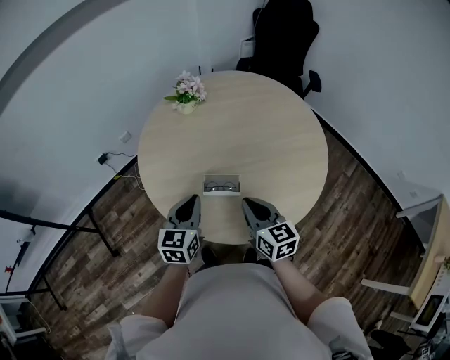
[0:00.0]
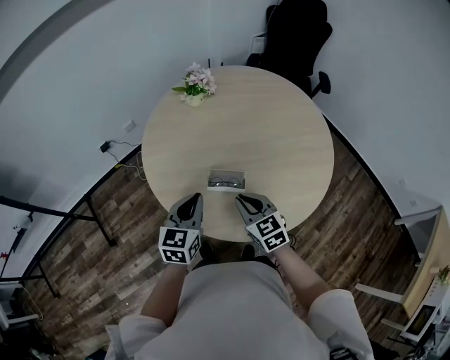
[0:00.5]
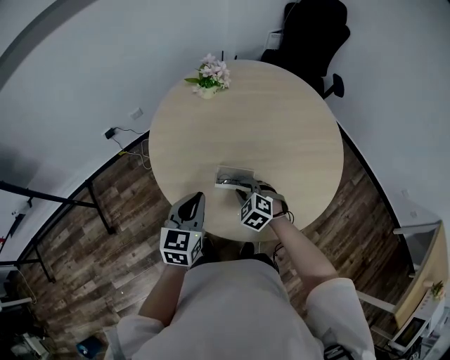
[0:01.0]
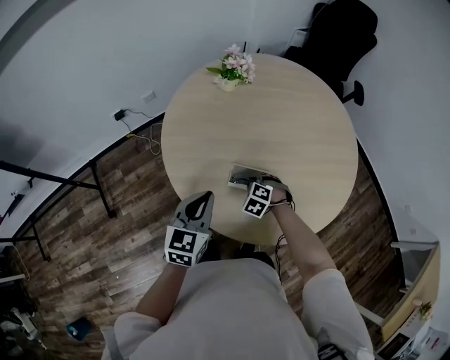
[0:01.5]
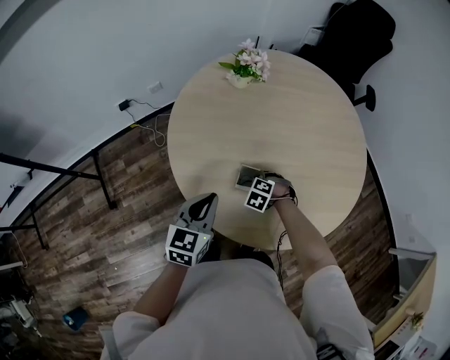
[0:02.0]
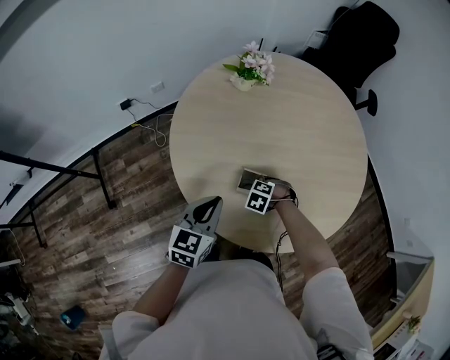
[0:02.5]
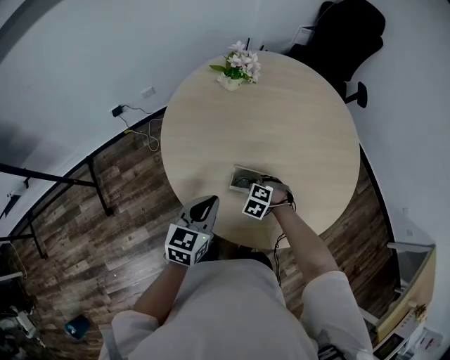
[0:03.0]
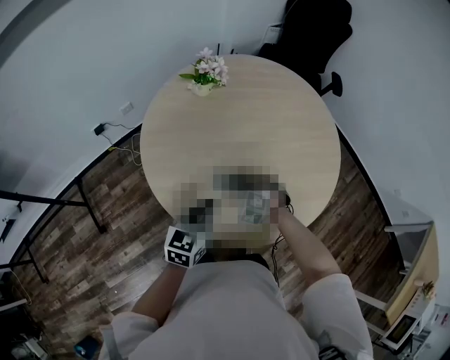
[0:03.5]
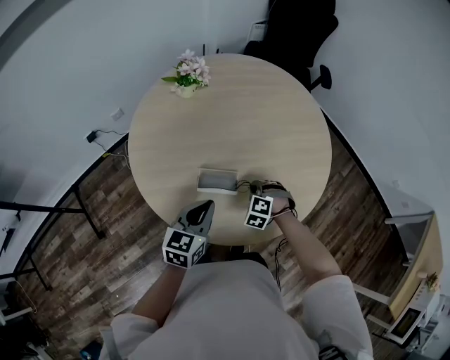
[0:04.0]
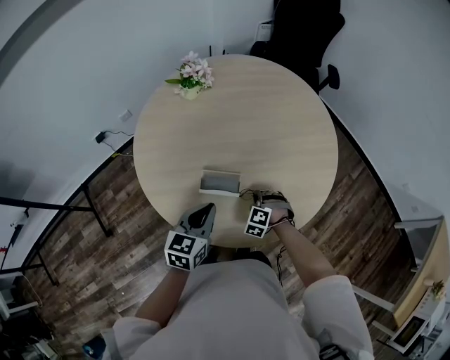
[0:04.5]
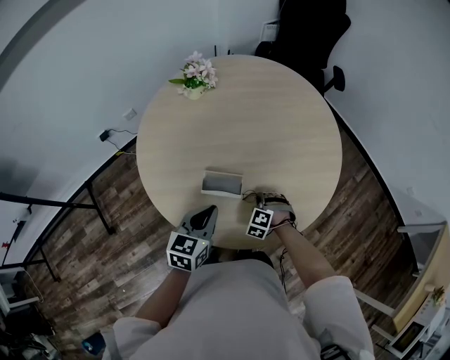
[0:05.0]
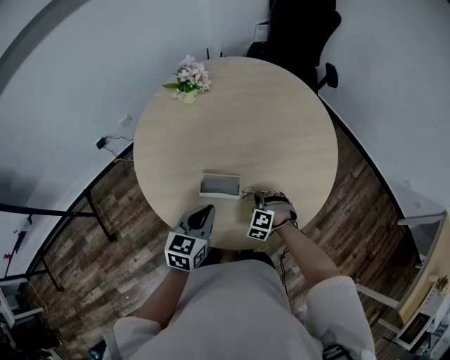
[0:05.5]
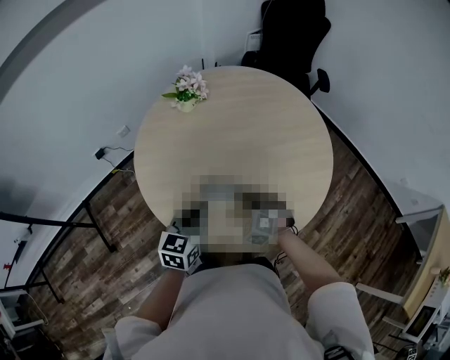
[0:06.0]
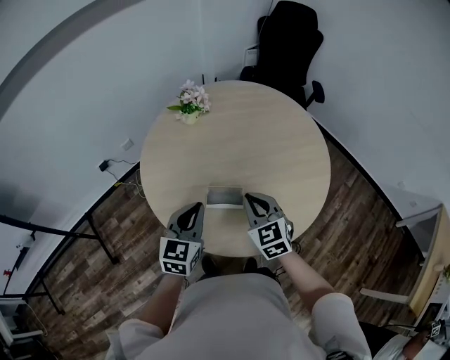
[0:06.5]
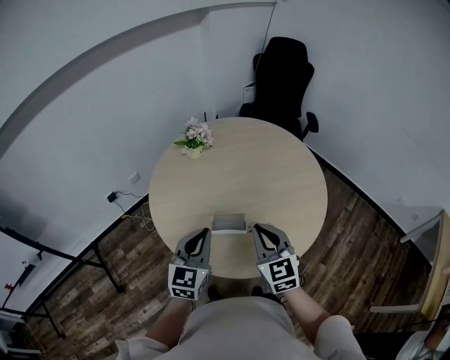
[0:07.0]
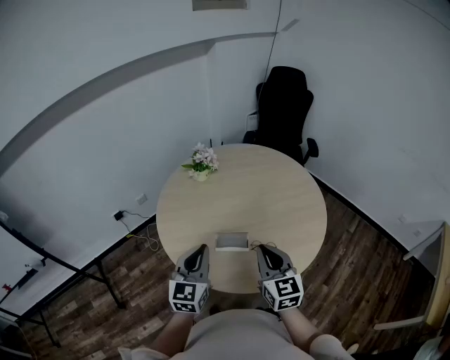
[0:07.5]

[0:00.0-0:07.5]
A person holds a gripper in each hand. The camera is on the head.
0:00.0 to 0:02.0: The right gripper heads downward, covering approximately 25 cm, and points its fingers some 60 degrees further downward; the left gripper ends up roughly 10 cm from where it was.
0:02.0 to 0:04.0: The left gripper shifts by some 10 cm; the right gripper changes place by approximately 15 cm.
0:04.0 to 0:05.5: The grippers make only small movements.
0:05.5 to 0:07.5: The right gripper heads upward, covering approximately 35 cm, and tilts its fingers some 50 degrees upward, while the left gripper is displaced upward, backward and to the left by some 20 cm, and turns by some 30 degrees.

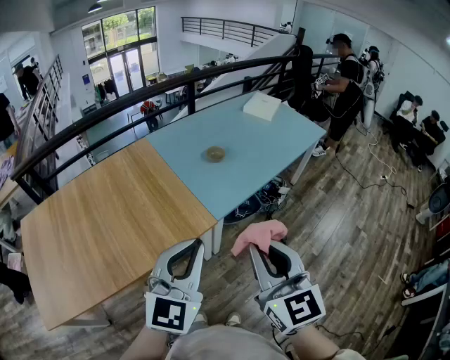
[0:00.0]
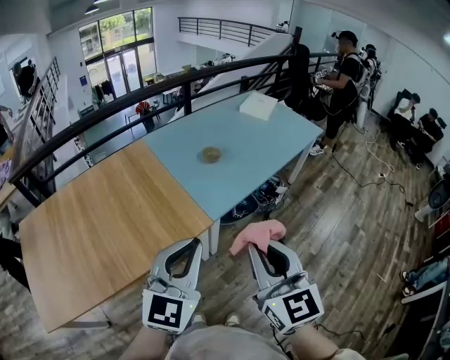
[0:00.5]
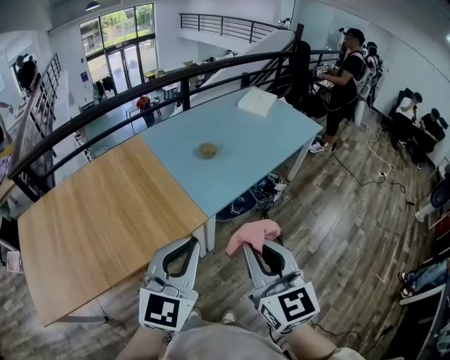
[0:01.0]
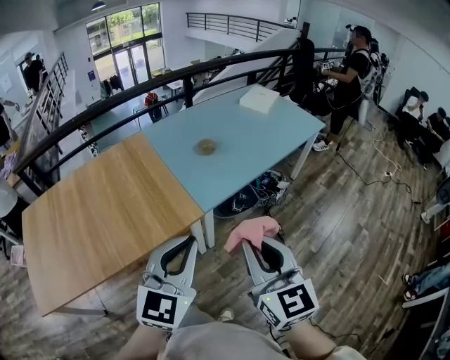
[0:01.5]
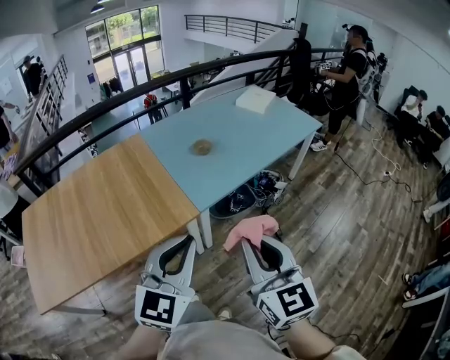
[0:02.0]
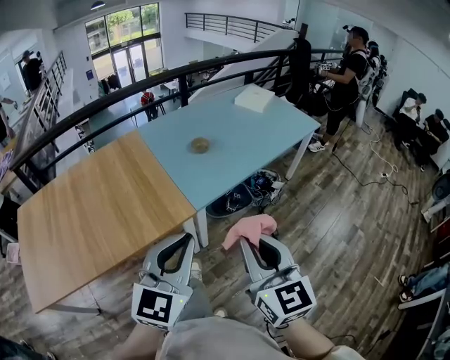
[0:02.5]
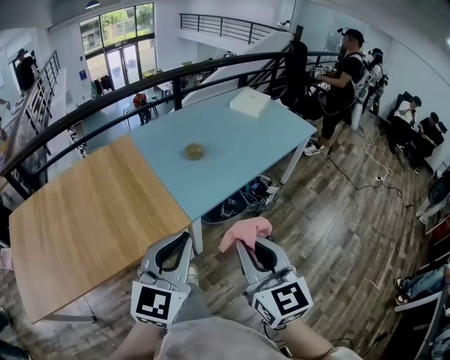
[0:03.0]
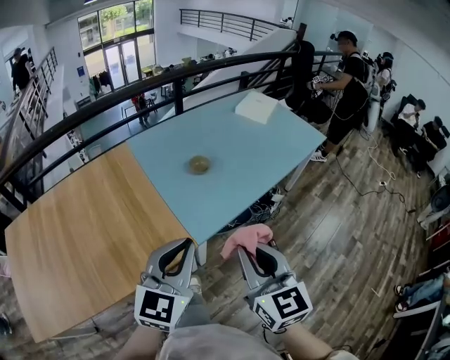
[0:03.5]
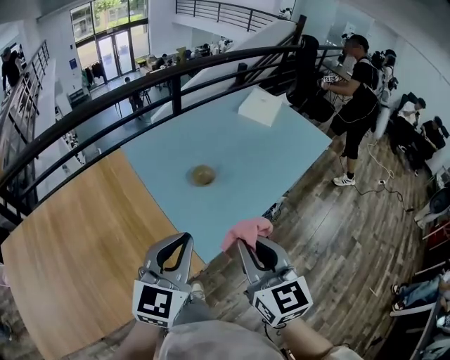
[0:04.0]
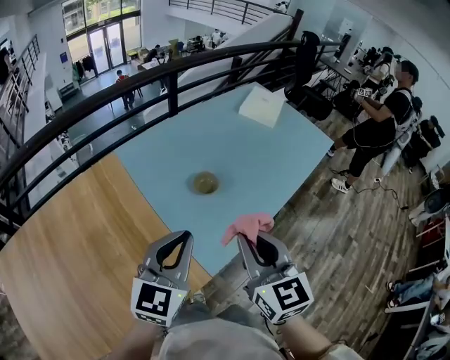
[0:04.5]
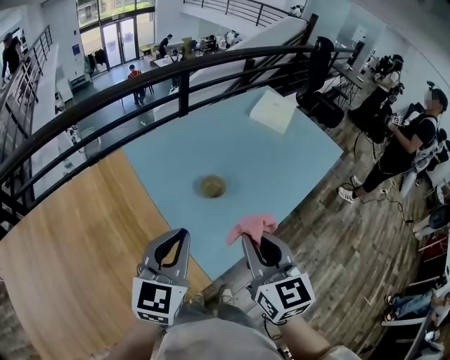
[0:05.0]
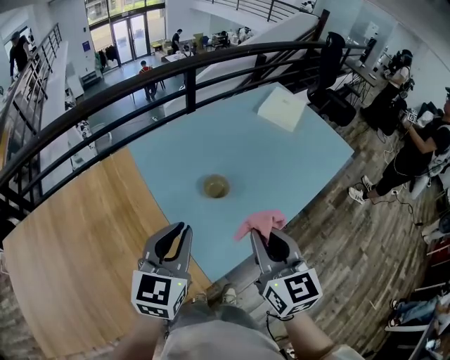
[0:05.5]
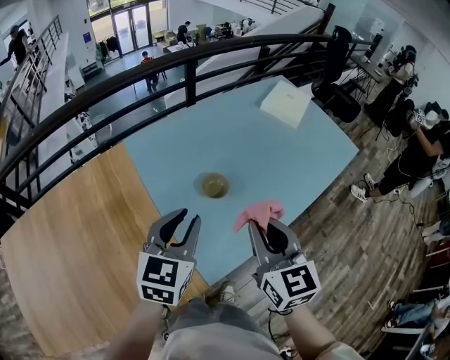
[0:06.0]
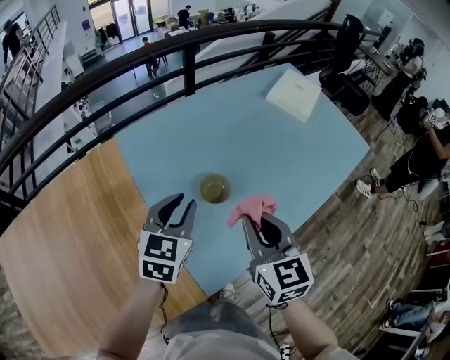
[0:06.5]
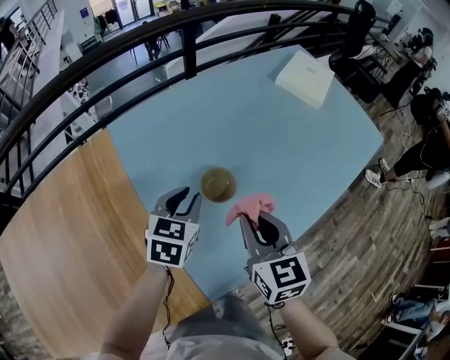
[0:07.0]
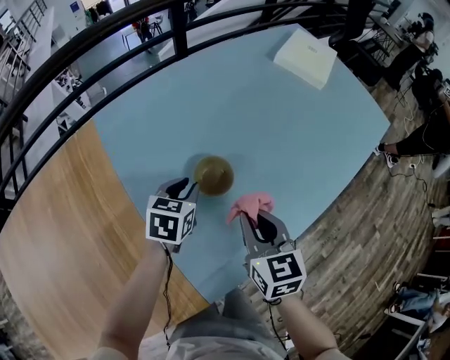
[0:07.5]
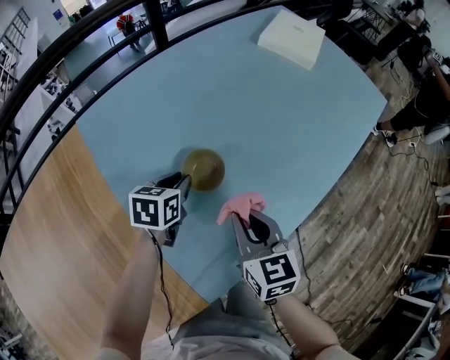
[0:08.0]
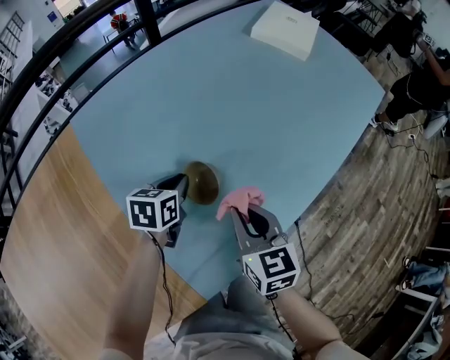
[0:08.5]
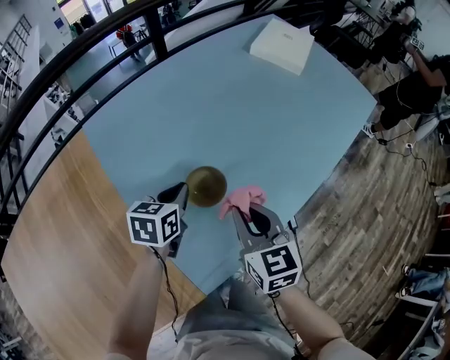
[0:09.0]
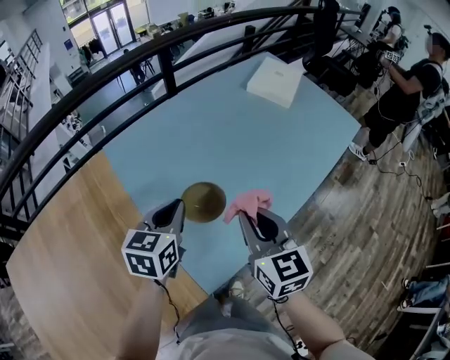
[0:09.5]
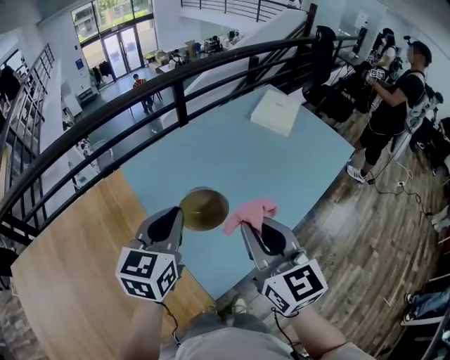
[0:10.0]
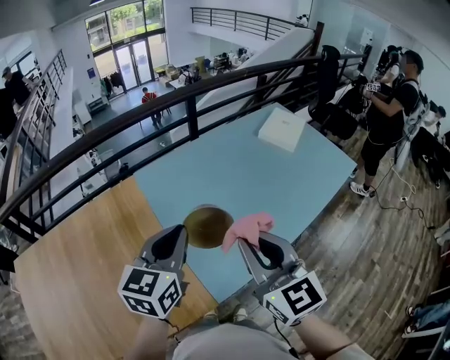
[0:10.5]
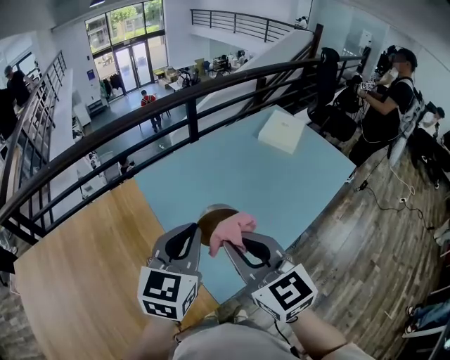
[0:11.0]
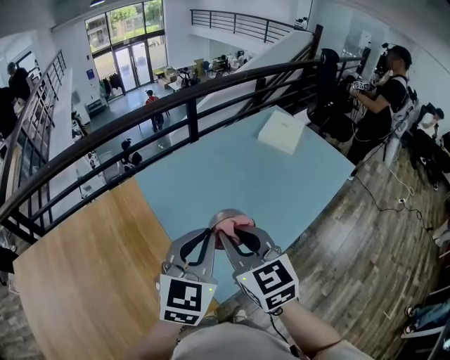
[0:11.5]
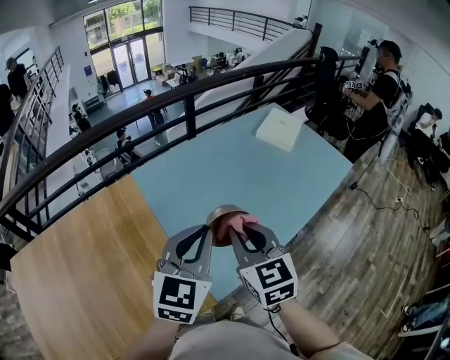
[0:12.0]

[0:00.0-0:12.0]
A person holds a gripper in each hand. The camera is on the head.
0:00.0 to 0:02.0: The two grippers go about 10 cm to the right.
0:02.0 to 0:04.0: The two grippers go roughly 35 cm forward.
0:04.0 to 0:06.0: Both grippers travel together forward, roughly 20 cm. The left gripper opens.
0:06.0 to 0:08.0: Both grippers travel together downward and forward, about 35 cm. The left gripper rotates roughly 30 degrees.
0:08.0 to 0:10.0: The left gripper moves upward and backward, roughly 40 cm, and rotates approximately 30 degrees; the right gripper moves upward, approximately 35 cm, and swivels approximately 20 degrees.
0:10.0 to 0:12.0: The left gripper is displaced backward and upward by approximately 10 cm, while the right gripper heads to the left, covering about 5 cm.

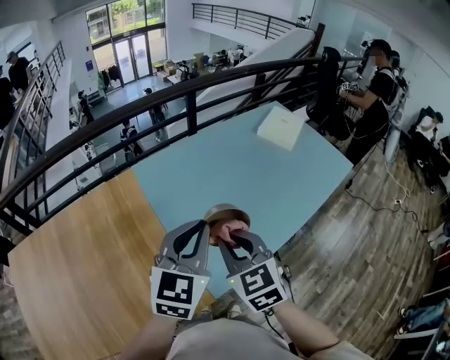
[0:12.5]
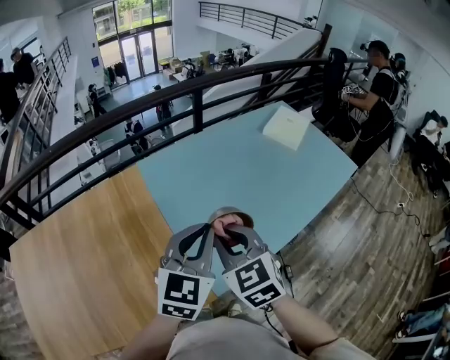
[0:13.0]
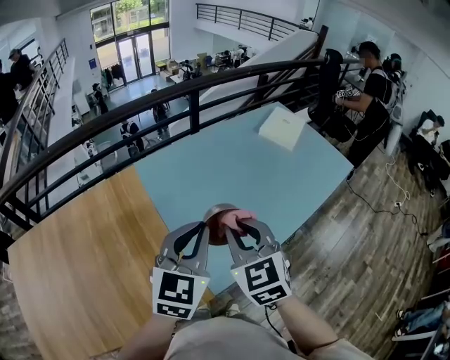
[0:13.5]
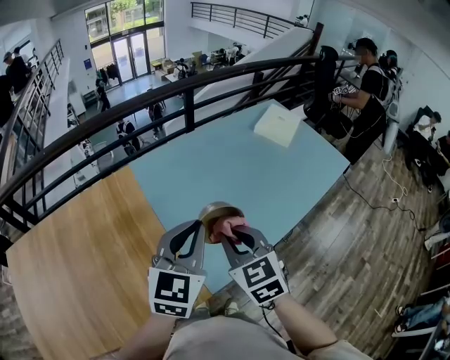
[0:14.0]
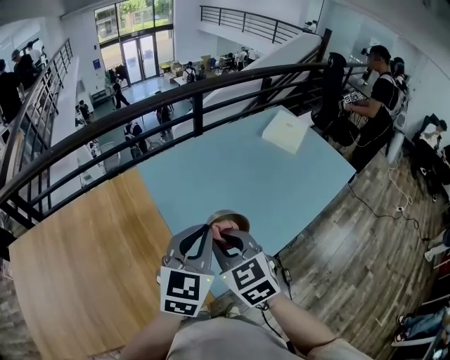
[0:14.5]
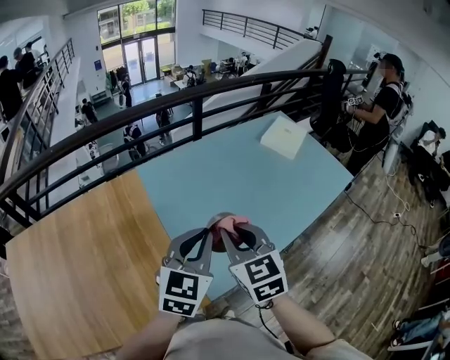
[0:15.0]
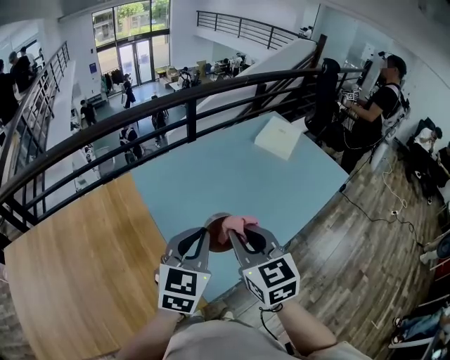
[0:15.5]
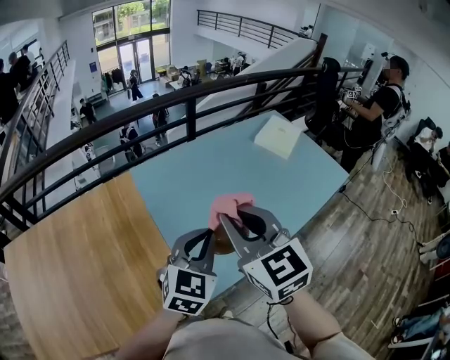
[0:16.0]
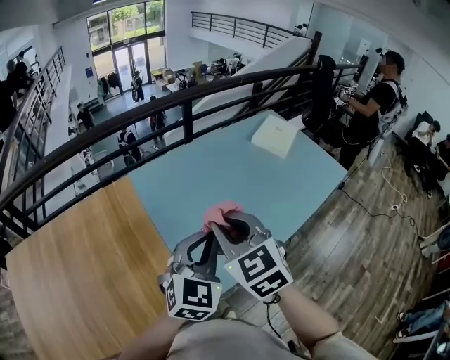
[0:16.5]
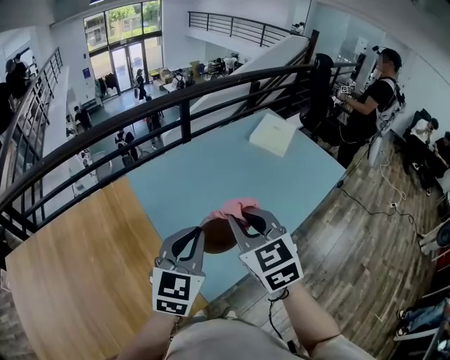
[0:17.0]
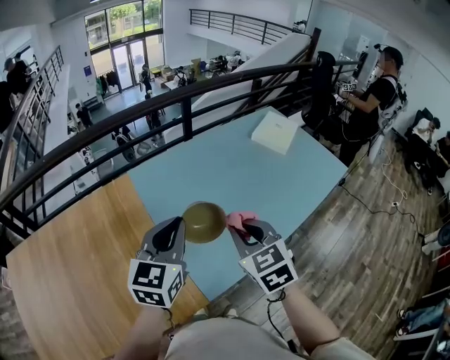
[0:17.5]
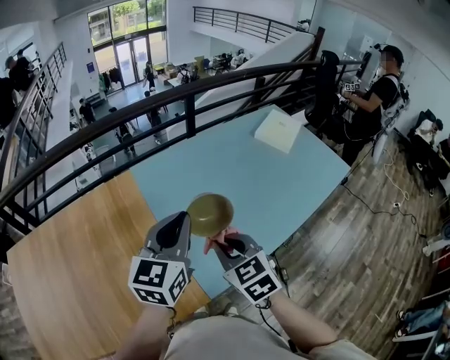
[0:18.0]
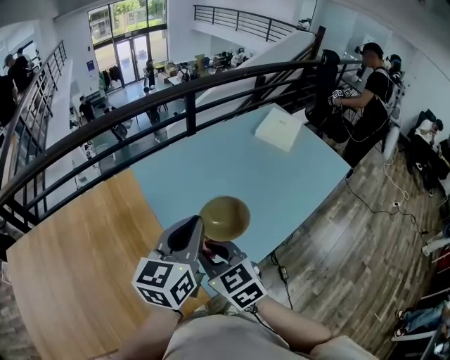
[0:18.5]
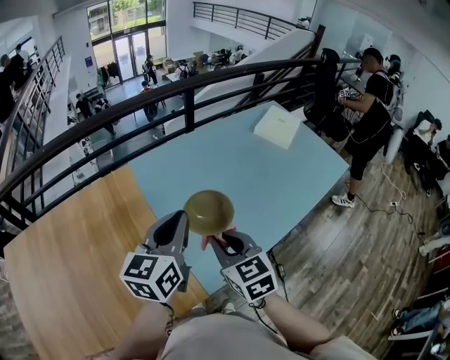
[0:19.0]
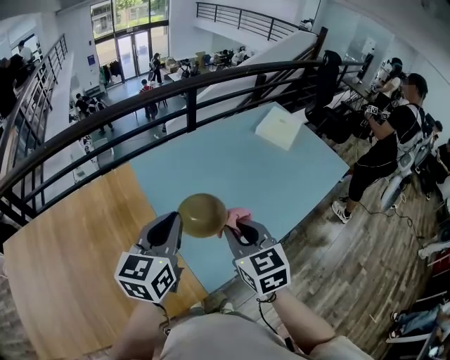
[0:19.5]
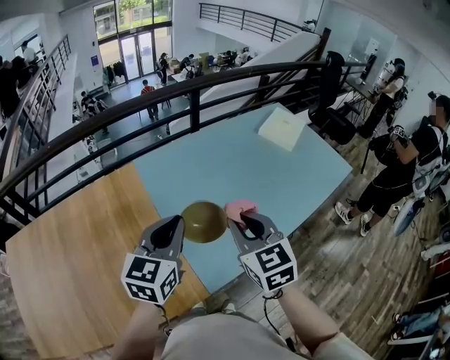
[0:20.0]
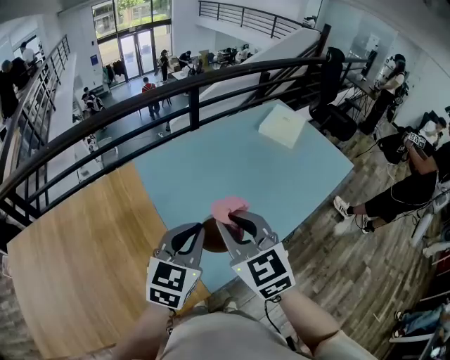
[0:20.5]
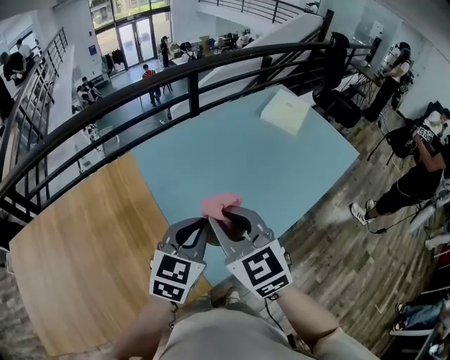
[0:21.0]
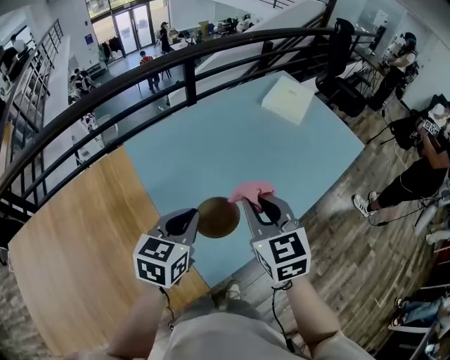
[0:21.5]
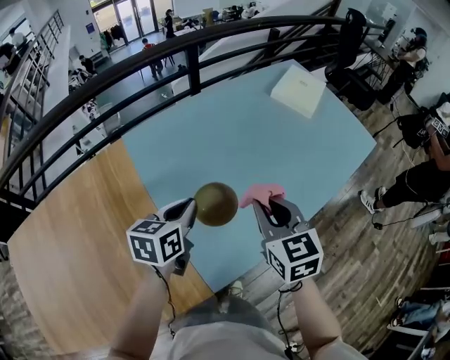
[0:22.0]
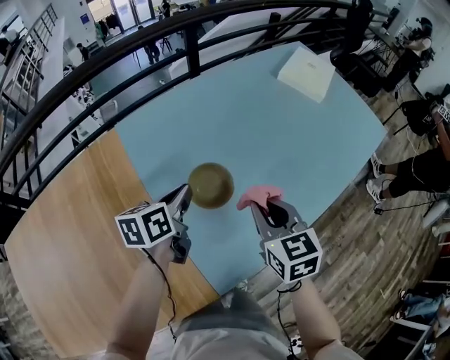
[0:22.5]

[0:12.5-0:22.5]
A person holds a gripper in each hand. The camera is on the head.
0:12.5 to 0:14.5: There are only small adjustments of the grippers.
0:14.5 to 0:16.5: The right gripper is displaced upward by approximately 5 cm.
0:16.5 to 0:18.5: The right gripper is displaced downward and to the left by about 10 cm. Meanwhile the left gripper moves to the left, roughly 5 cm, and swivels some 40 degrees.
0:18.5 to 0:20.5: The right gripper heads upward and to the right, covering some 10 cm. The left gripper changes its angle by approximately 20 degrees.
0:20.5 to 0:22.5: Both grippers travel together downward and forward, roughly 30 cm. The right gripper rotates roughly 30 degrees, while the left gripper rotates around the line of its fingers by roughly 50 degrees, counterclockwise from behind.
